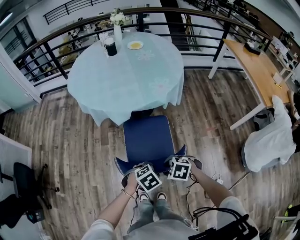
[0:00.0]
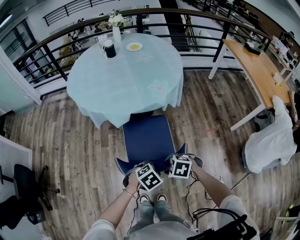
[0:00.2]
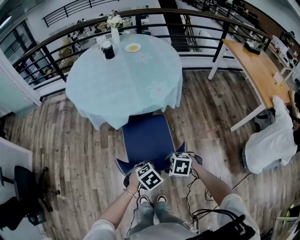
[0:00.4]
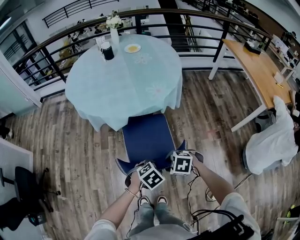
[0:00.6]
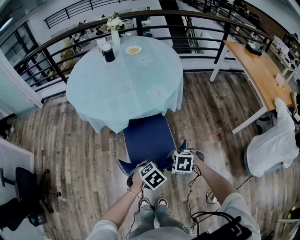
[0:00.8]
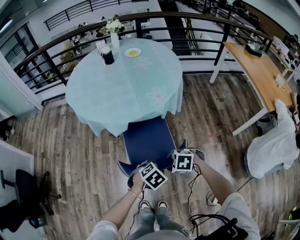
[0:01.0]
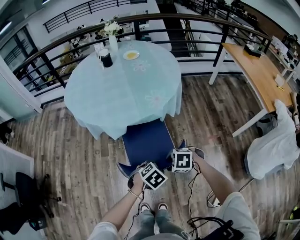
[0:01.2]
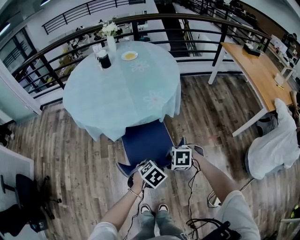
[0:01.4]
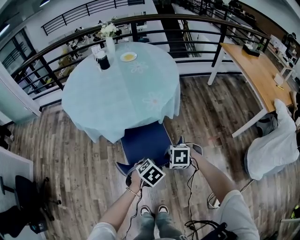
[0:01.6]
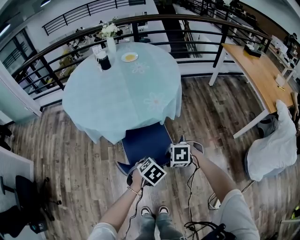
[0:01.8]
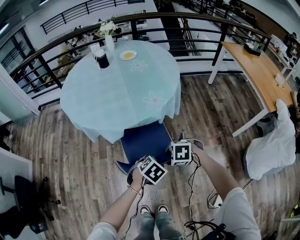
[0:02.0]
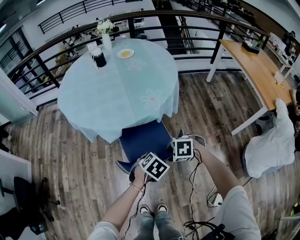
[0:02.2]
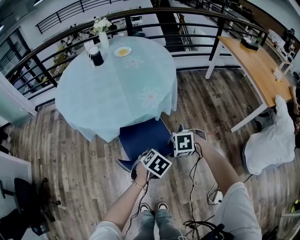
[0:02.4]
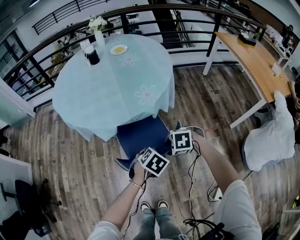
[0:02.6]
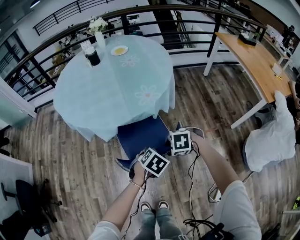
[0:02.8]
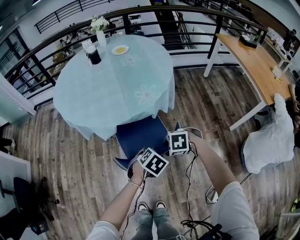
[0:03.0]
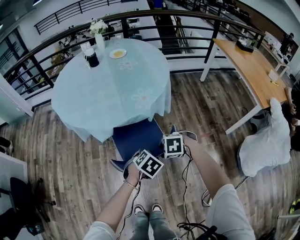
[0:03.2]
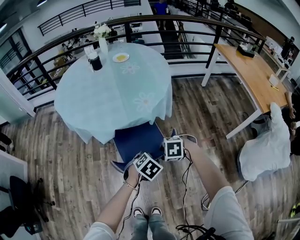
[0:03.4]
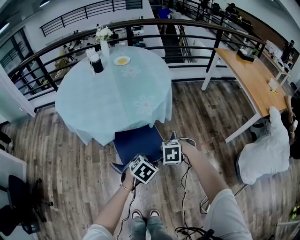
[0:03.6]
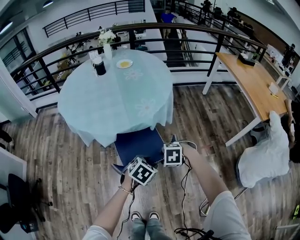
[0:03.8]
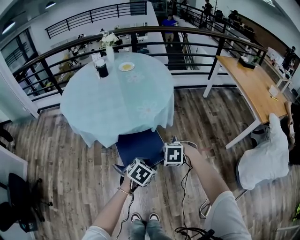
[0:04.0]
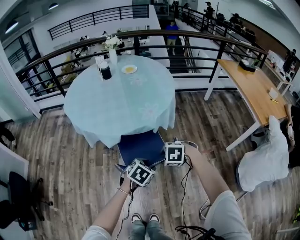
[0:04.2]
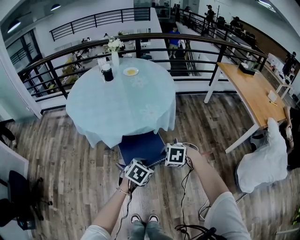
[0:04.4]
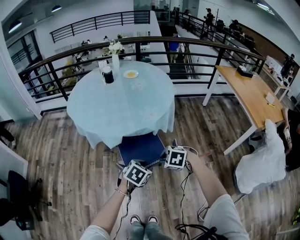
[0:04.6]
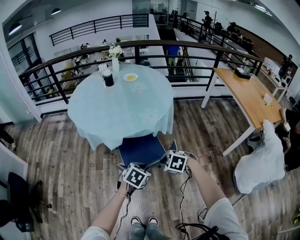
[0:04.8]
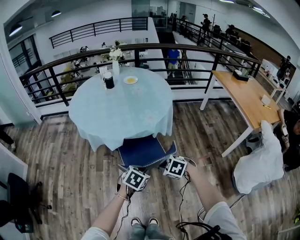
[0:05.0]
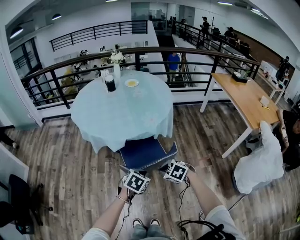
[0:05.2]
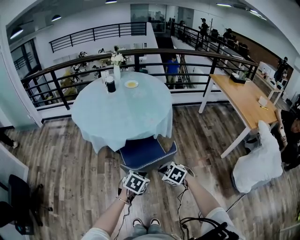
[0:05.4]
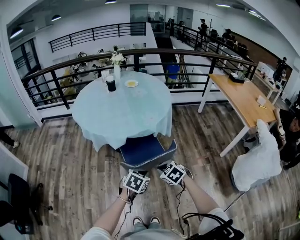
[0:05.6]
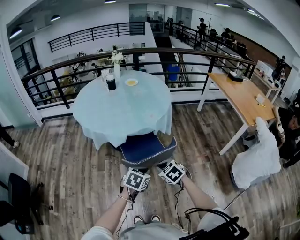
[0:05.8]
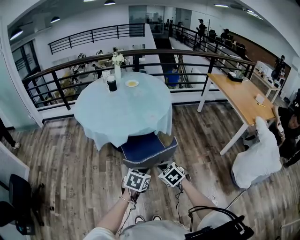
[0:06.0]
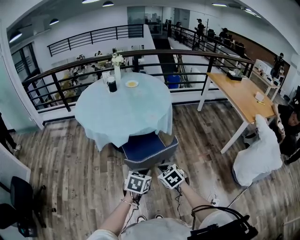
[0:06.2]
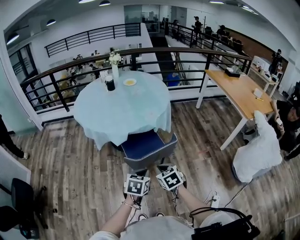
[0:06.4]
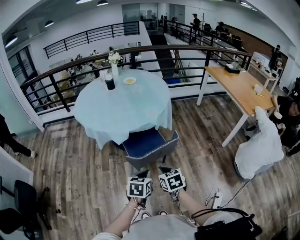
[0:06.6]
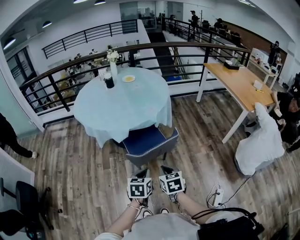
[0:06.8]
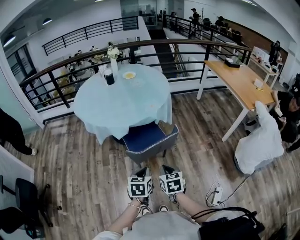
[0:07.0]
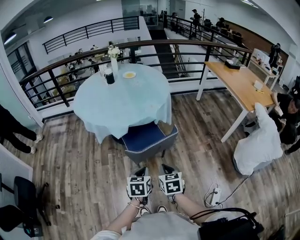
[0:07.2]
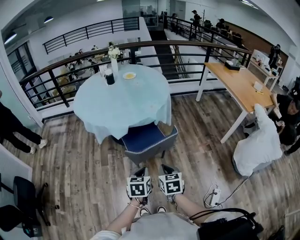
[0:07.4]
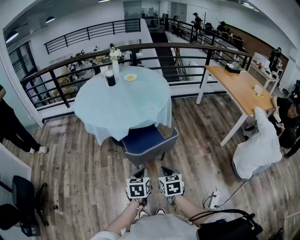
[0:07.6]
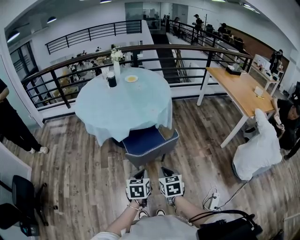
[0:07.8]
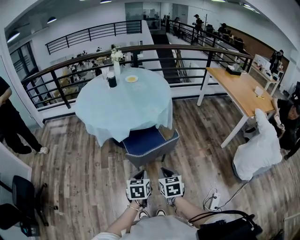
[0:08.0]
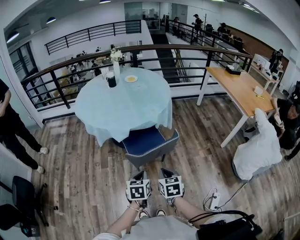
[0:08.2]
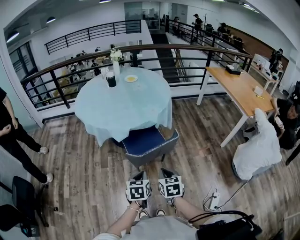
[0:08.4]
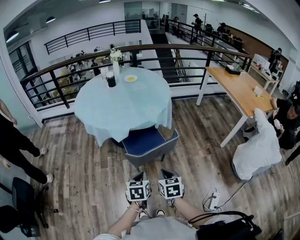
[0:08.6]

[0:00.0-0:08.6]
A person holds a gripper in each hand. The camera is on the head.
0:00.0 to 0:01.4: The left gripper ends up some 10 cm from where it was. The right gripper ends up approximately 15 cm from where it was.
0:01.4 to 0:02.8: The left gripper changes place by some 5 cm. The right gripper ends up roughly 5 cm from where it was.
0:02.8 to 0:04.4: Both grippers travel together upward, approximately 5 cm.
0:04.4 to 0:05.8: The grippers both shift backward and to the left by roughly 10 cm. The left gripper closes its fingers, while the right gripper turns by approximately 40 degrees, and closes up.
0:05.8 to 0:07.2: The two grippers go roughly 5 cm backward. The left gripper rotates approximately 20 degrees. The right gripper rotates roughly 40 degrees.
0:07.2 to 0:08.6: The grippers move only a little.

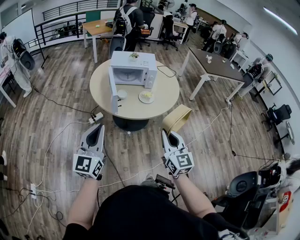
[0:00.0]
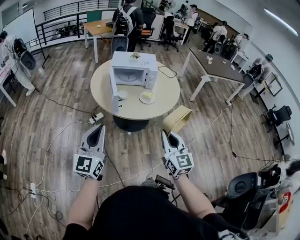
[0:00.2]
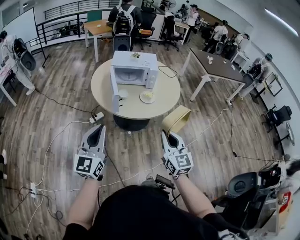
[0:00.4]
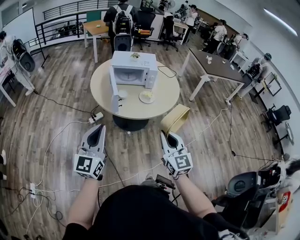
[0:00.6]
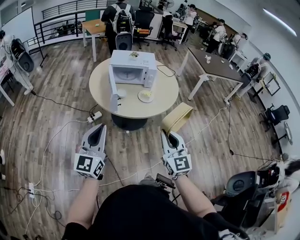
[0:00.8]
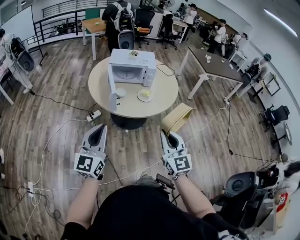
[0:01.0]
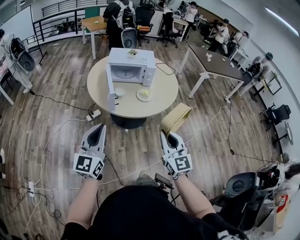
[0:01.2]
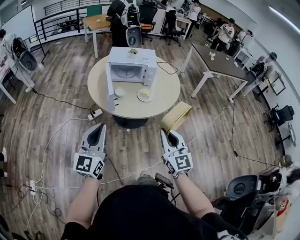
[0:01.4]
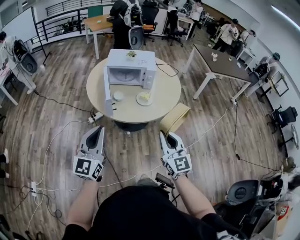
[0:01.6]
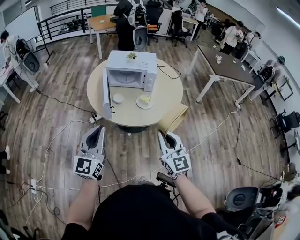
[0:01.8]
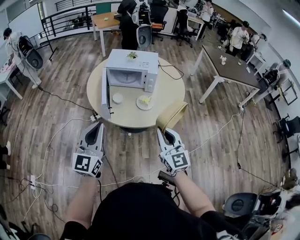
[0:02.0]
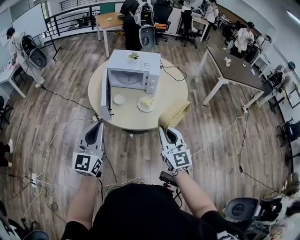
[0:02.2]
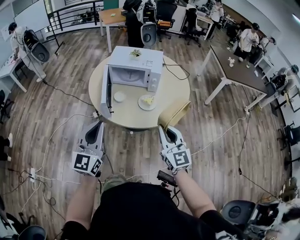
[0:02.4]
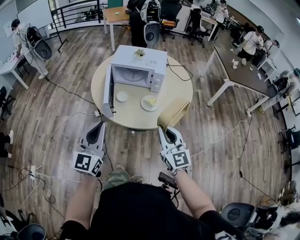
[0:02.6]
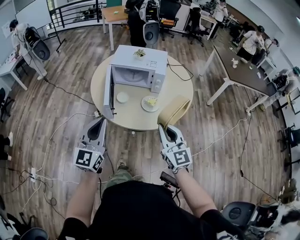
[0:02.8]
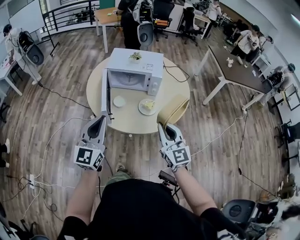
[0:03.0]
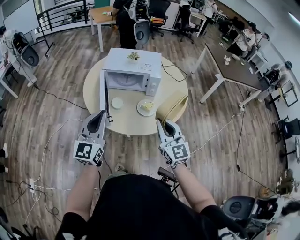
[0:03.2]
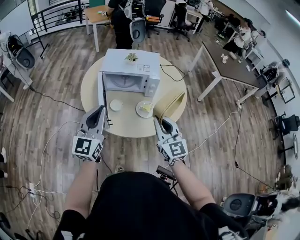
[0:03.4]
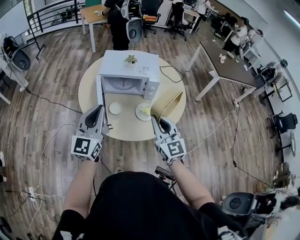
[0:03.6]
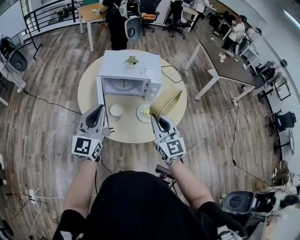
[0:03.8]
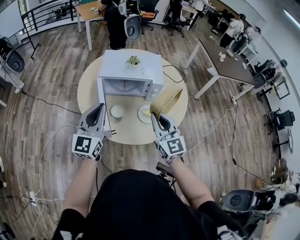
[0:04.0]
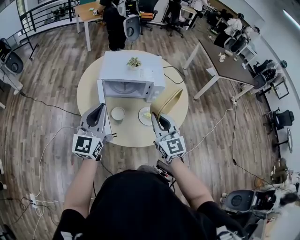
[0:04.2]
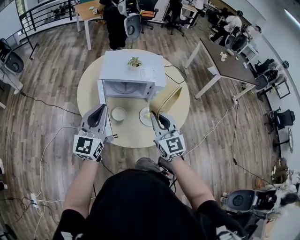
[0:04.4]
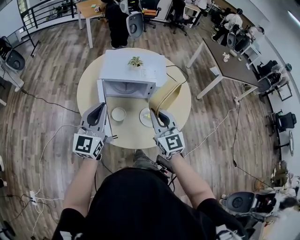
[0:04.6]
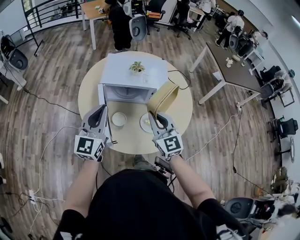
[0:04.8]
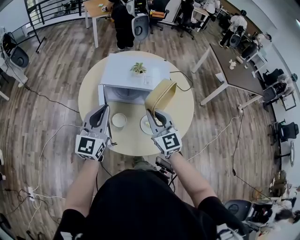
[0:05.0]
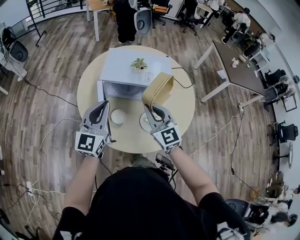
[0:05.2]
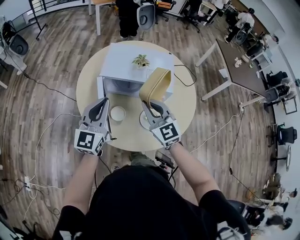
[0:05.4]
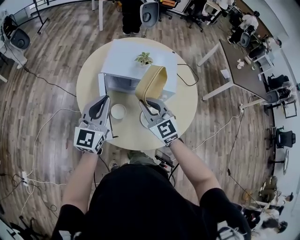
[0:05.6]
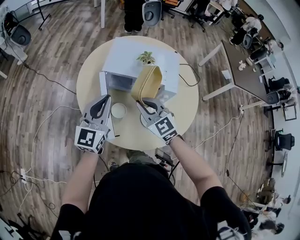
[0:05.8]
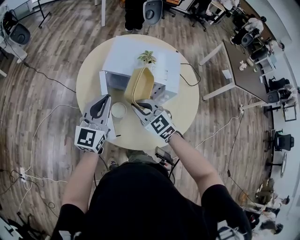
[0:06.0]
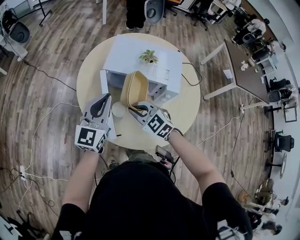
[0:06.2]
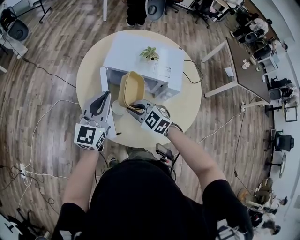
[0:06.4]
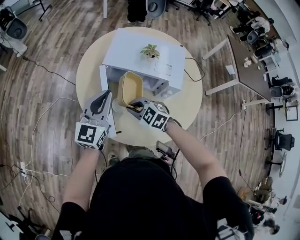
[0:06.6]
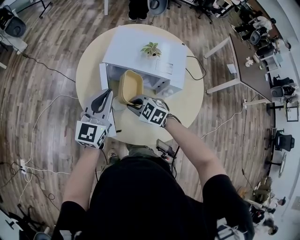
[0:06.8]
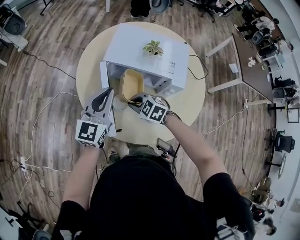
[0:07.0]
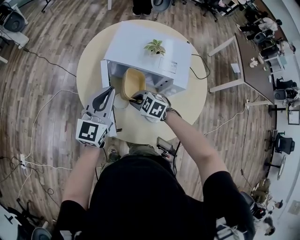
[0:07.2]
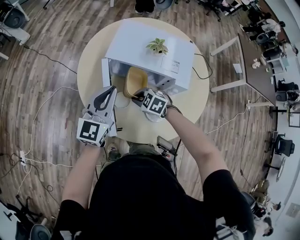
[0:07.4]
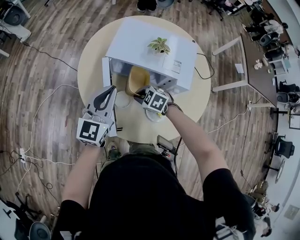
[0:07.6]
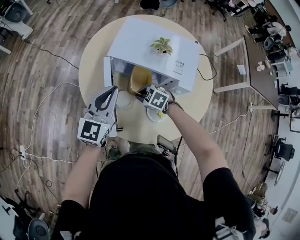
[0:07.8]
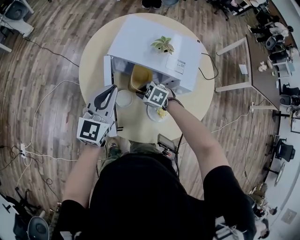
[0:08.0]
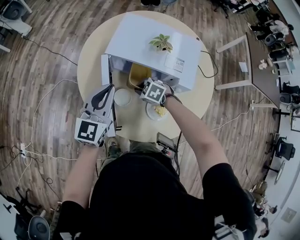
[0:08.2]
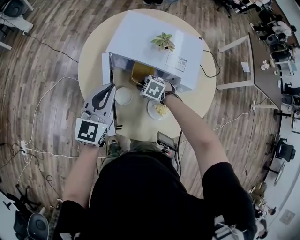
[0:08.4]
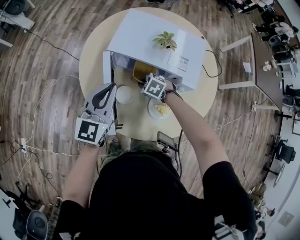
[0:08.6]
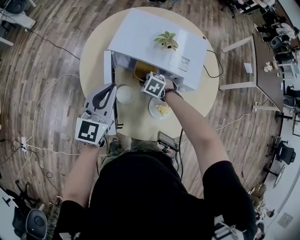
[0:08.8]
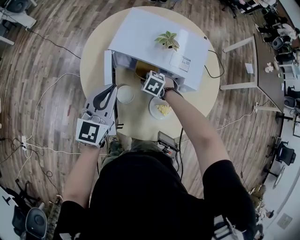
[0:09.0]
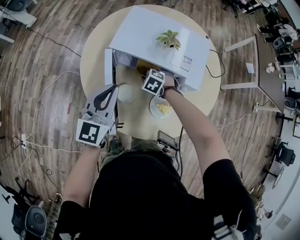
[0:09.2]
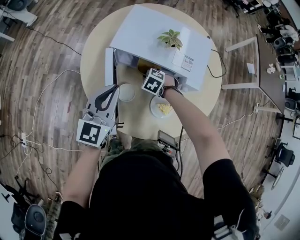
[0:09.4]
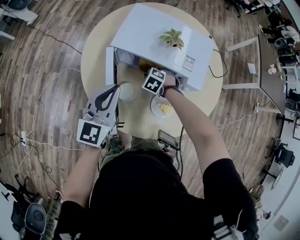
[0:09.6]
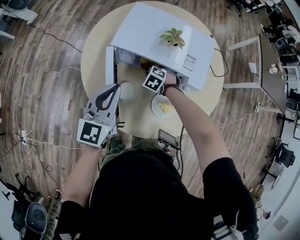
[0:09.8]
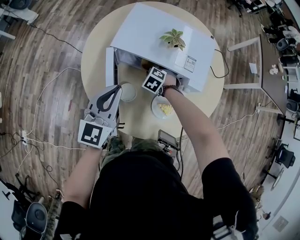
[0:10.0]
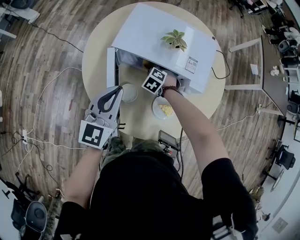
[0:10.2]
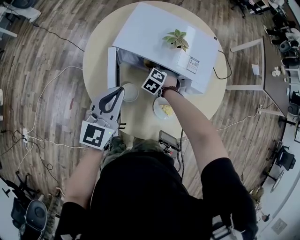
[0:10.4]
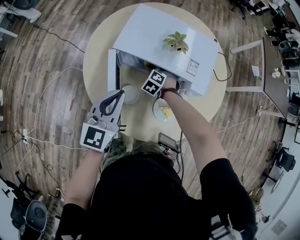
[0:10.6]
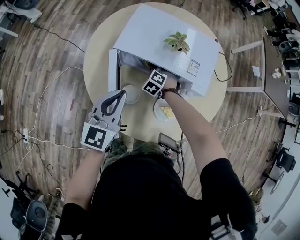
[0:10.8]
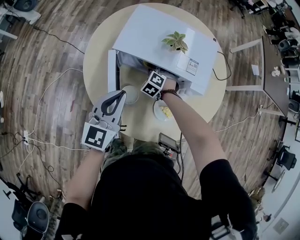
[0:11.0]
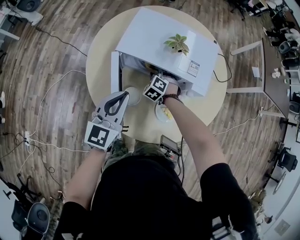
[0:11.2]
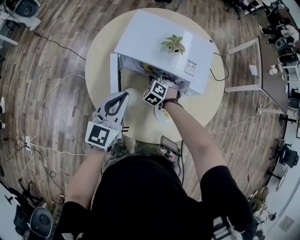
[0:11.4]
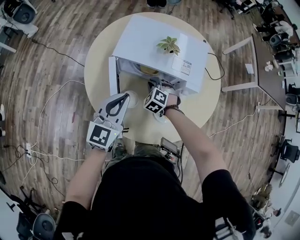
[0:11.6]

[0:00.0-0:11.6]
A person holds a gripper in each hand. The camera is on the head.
0:00.0 to 0:01.4: The left gripper moves some 5 cm.
0:01.4 to 0:02.8: The left gripper moves forward and to the right, approximately 15 cm, while the right gripper heads forward, covering some 15 cm.
0:02.8 to 0:04.4: The left gripper travels forward by approximately 25 cm. The right gripper travels forward and to the left by some 20 cm.
0:04.4 to 0:05.8: The left gripper moves forward, roughly 10 cm. The right gripper moves forward, downward and to the left, about 15 cm, and changes its angle by about 30 degrees.
0:05.8 to 0:07.2: The right gripper goes approximately 15 cm downward, and tips its fingers downward by about 30 degrees.
0:07.2 to 0:08.8: The right gripper shifts some 10 cm downward, to the right and forward.
0:08.8 to 0:10.2: The right gripper moves roughly 5 cm.
0:10.2 to 0:11.6: The right gripper travels upward by some 5 cm.

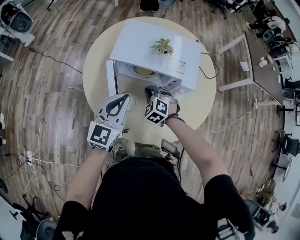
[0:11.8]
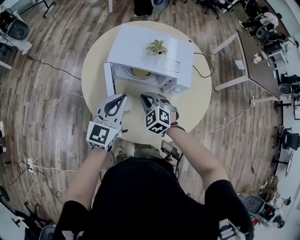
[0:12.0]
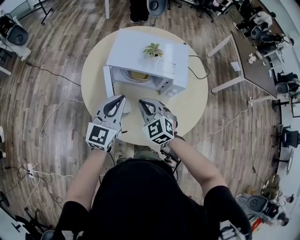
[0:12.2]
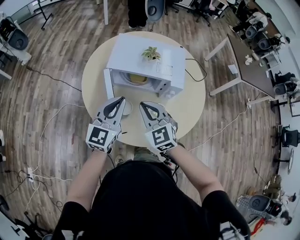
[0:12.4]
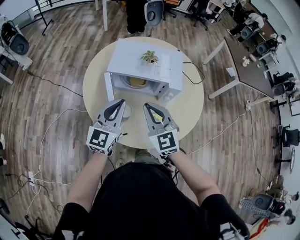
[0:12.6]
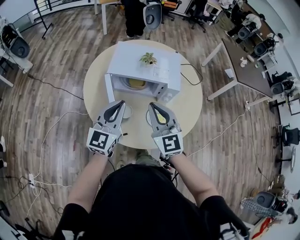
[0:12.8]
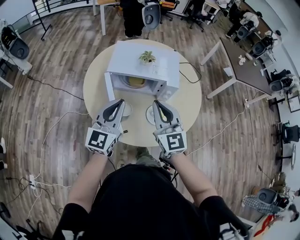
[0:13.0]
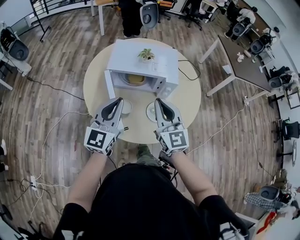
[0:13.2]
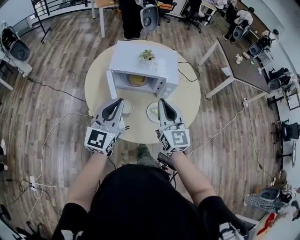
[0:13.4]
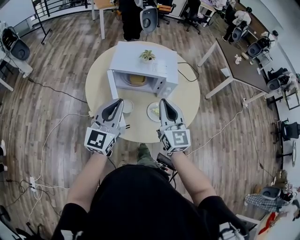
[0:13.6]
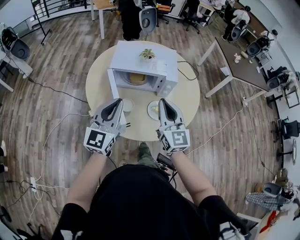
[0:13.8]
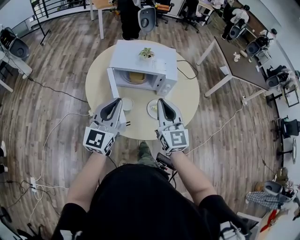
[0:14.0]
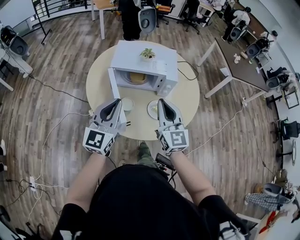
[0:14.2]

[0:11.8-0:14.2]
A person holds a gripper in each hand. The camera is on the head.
0:11.8 to 0:13.0: The left gripper is displaced upward and backward by roughly 10 cm, while the right gripper shifts approximately 30 cm upward and backward, and tilts its fingers some 50 degrees upward.
0:13.0 to 0:14.2: The left gripper goes about 5 cm backward. Meanwhile the right gripper moves roughly 5 cm.

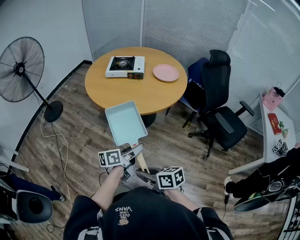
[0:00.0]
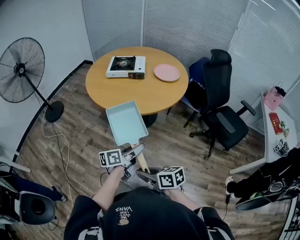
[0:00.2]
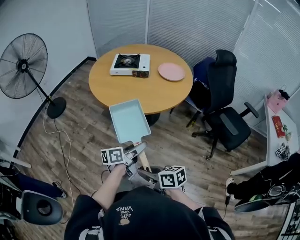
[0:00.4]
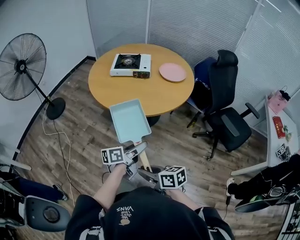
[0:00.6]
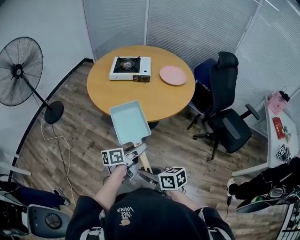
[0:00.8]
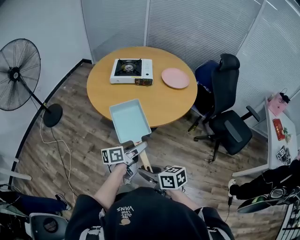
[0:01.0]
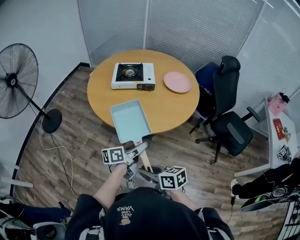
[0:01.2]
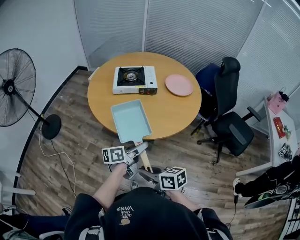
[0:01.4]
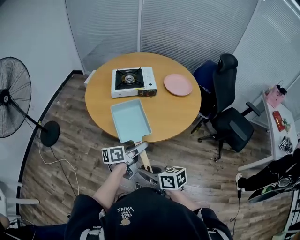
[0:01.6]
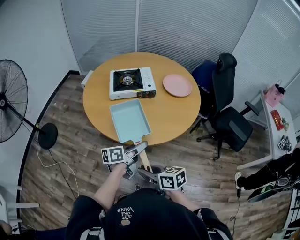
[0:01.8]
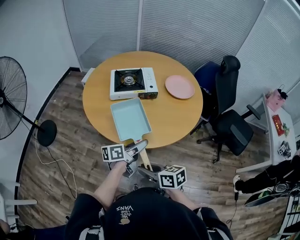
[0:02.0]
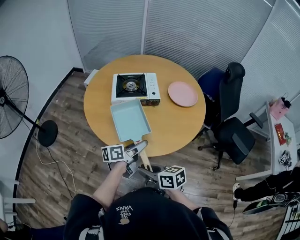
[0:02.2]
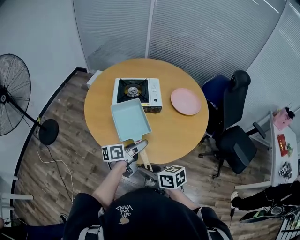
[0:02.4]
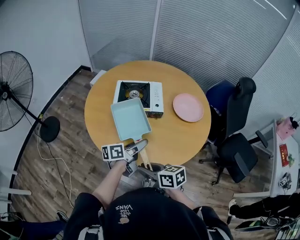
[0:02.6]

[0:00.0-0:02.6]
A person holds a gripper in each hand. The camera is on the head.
0:00.0 to 0:01.2: Both grippers move forward and to the left, some 20 cm.
0:01.2 to 0:02.6: The grippers both shift forward by some 25 cm.
